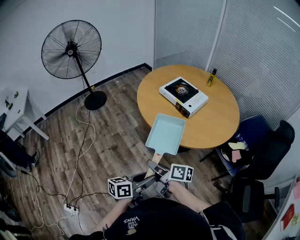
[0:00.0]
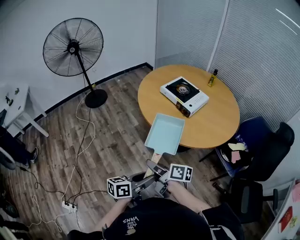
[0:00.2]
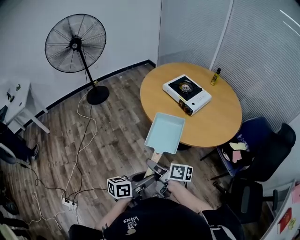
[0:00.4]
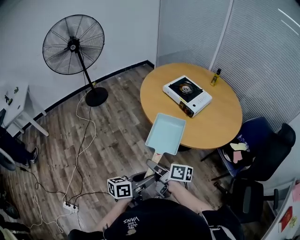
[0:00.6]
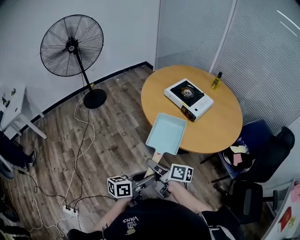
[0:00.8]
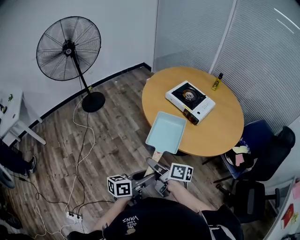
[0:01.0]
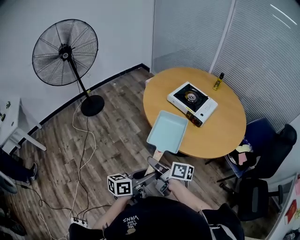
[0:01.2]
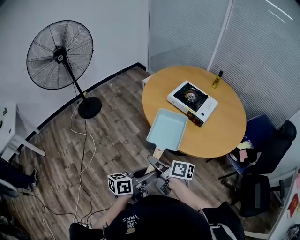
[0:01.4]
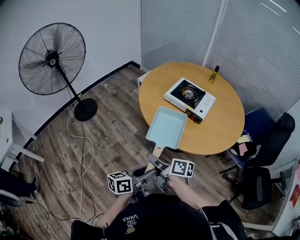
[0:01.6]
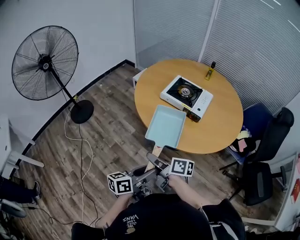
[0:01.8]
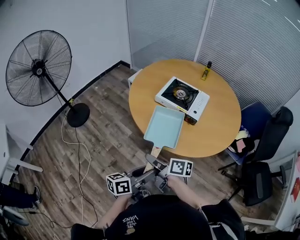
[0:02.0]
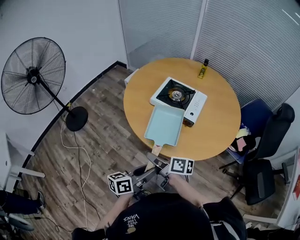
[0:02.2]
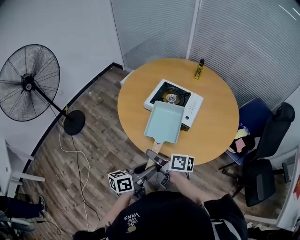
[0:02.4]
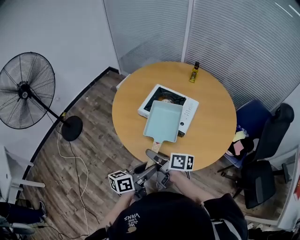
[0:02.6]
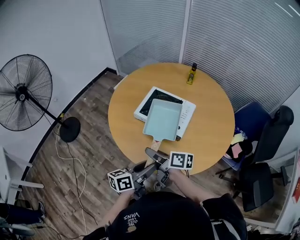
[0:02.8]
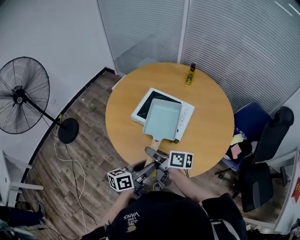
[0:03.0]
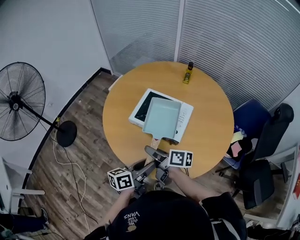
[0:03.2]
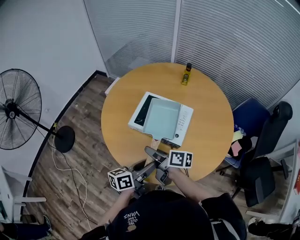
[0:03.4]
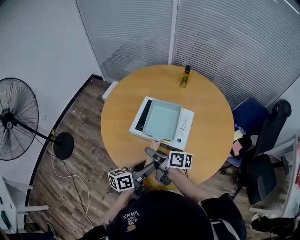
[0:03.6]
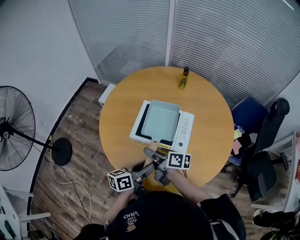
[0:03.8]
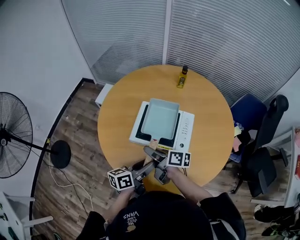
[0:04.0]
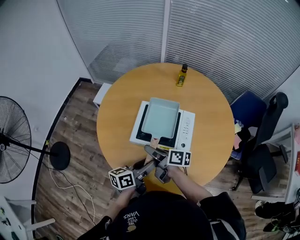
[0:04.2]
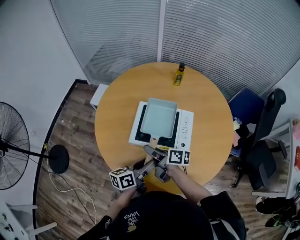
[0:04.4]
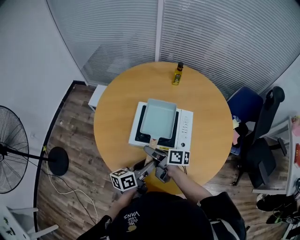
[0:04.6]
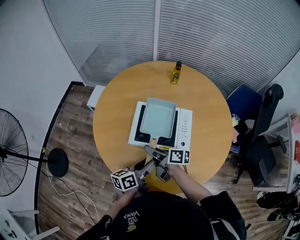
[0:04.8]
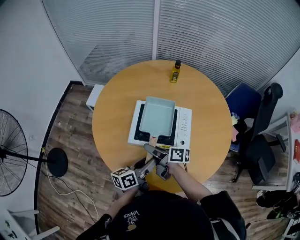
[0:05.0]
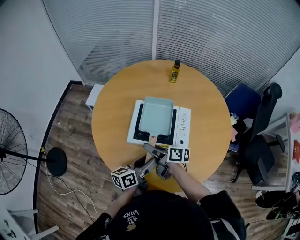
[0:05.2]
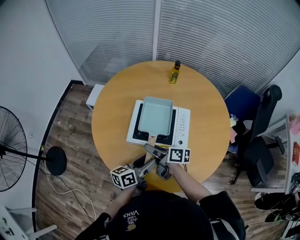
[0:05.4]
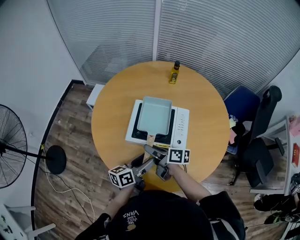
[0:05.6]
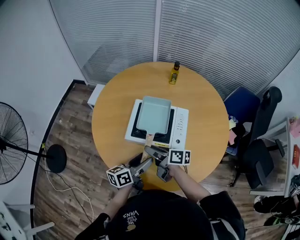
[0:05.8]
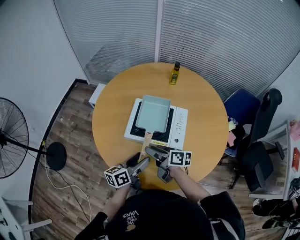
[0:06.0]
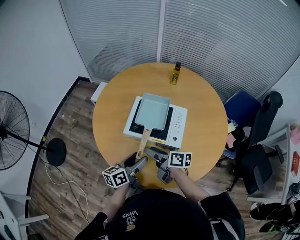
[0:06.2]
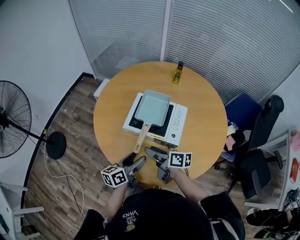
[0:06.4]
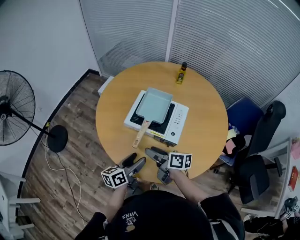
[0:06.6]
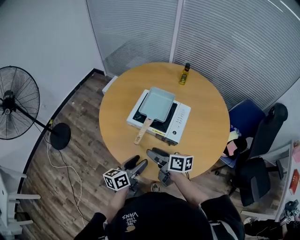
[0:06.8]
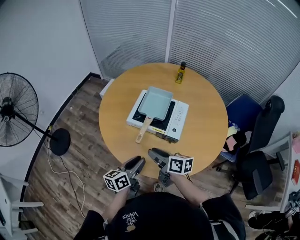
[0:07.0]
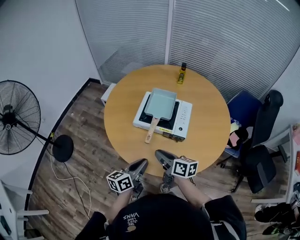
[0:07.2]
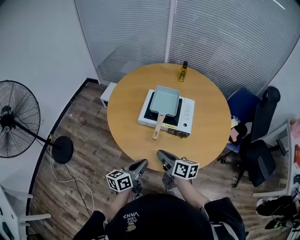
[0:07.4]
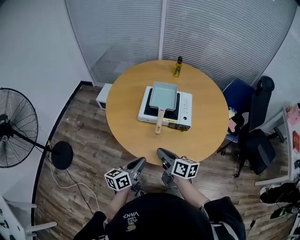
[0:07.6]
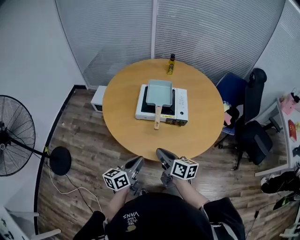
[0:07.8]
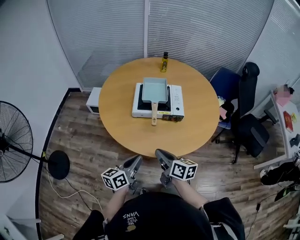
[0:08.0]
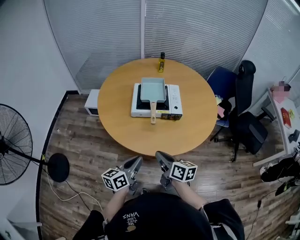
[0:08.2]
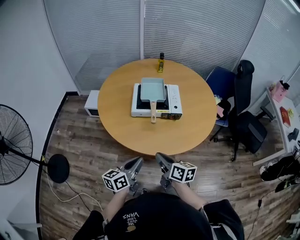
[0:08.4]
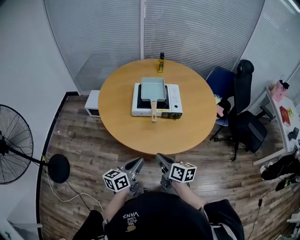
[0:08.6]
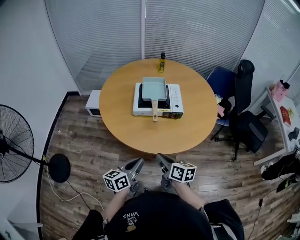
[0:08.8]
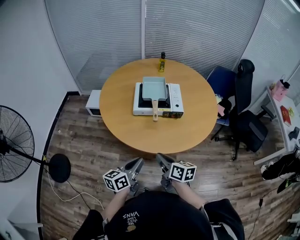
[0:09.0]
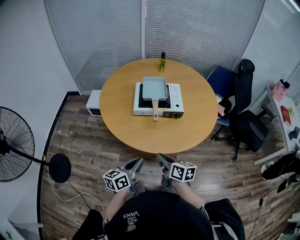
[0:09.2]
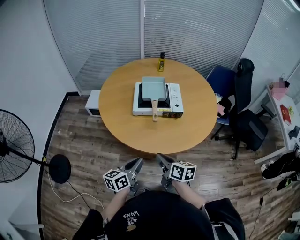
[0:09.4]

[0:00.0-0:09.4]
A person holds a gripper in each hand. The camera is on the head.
0:00.0 to 0:01.6: The grippers both shift forward and to the left by approximately 20 cm.
0:01.6 to 0:03.2: Both grippers move forward and to the right, some 30 cm.
0:03.2 to 0:04.8: The right gripper is displaced forward and downward by about 15 cm; the left gripper is displaced forward, to the left and downward by some 15 cm.
0:04.8 to 0:06.2: The left gripper opens up, while the right gripper moves backward, some 5 cm.
0:06.2 to 0:07.8: Both grippers move backward and to the left, approximately 15 cm. The left gripper closes its fingers. The right gripper changes its angle by approximately 30 degrees, and closes up.
0:07.8 to 0:09.4: The right gripper moves backward, approximately 5 cm.

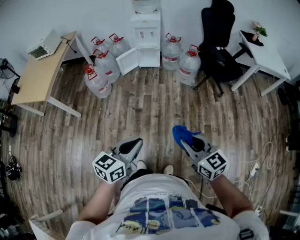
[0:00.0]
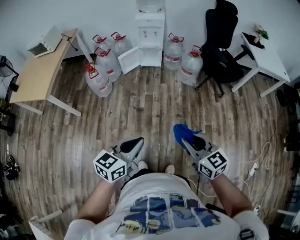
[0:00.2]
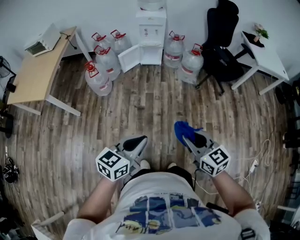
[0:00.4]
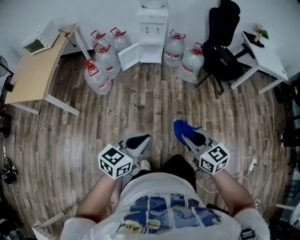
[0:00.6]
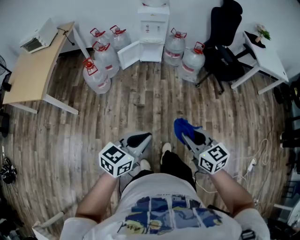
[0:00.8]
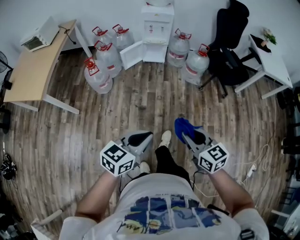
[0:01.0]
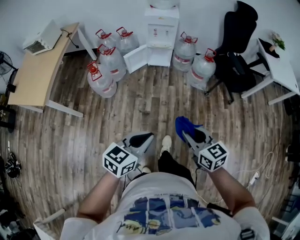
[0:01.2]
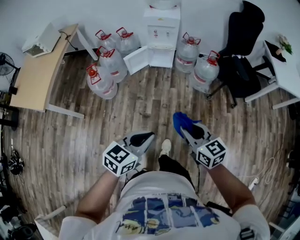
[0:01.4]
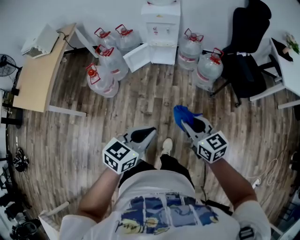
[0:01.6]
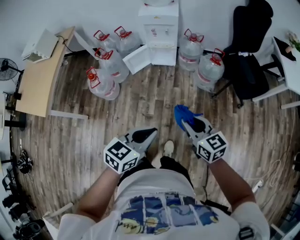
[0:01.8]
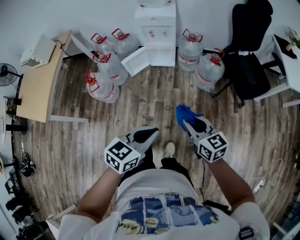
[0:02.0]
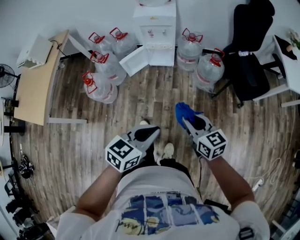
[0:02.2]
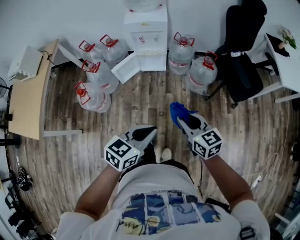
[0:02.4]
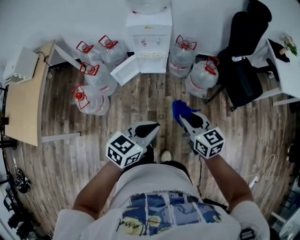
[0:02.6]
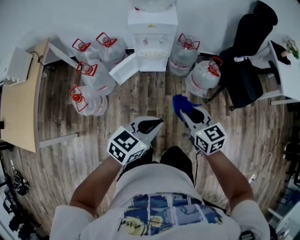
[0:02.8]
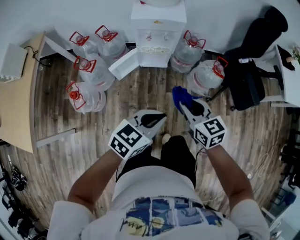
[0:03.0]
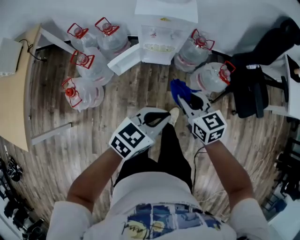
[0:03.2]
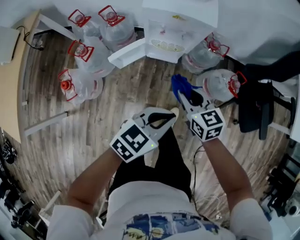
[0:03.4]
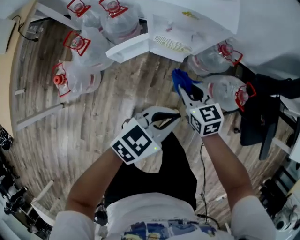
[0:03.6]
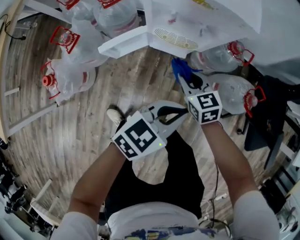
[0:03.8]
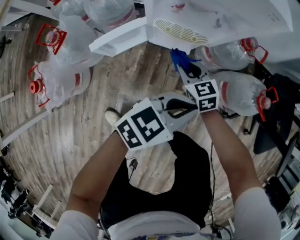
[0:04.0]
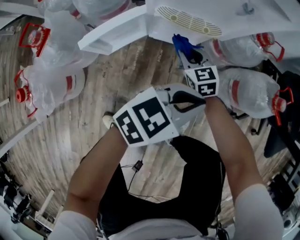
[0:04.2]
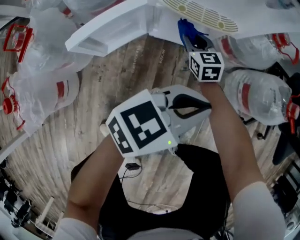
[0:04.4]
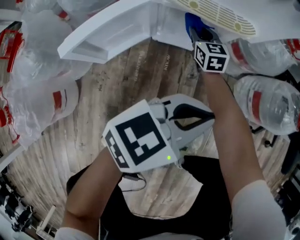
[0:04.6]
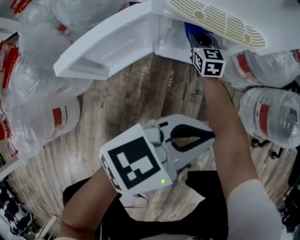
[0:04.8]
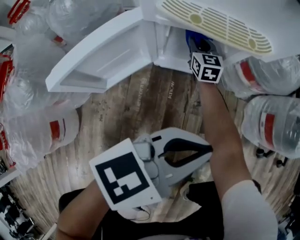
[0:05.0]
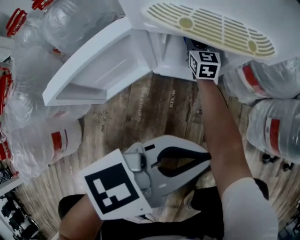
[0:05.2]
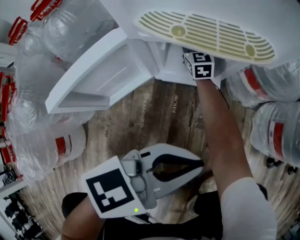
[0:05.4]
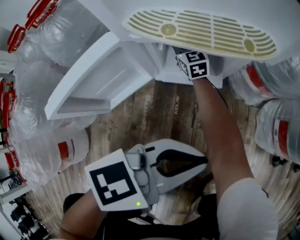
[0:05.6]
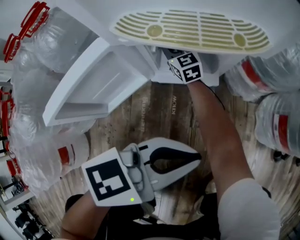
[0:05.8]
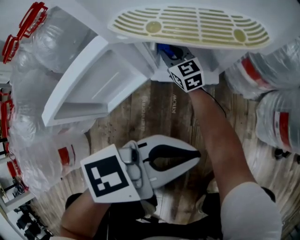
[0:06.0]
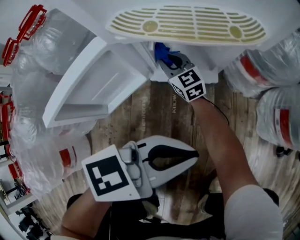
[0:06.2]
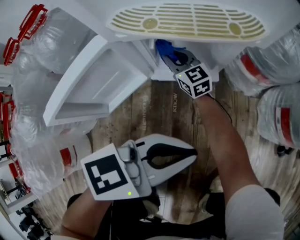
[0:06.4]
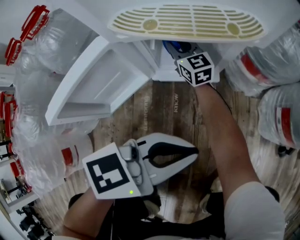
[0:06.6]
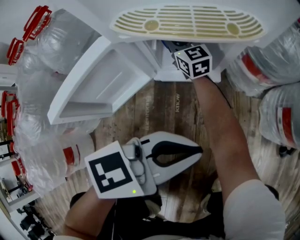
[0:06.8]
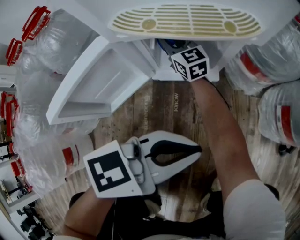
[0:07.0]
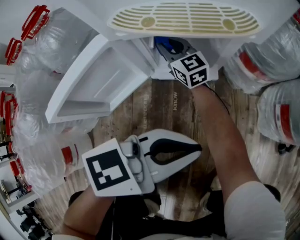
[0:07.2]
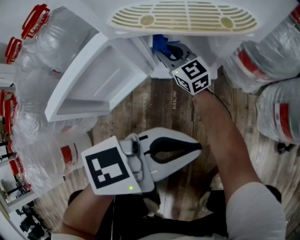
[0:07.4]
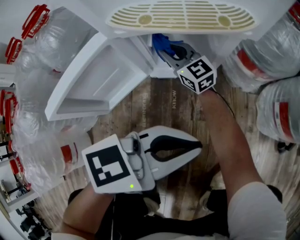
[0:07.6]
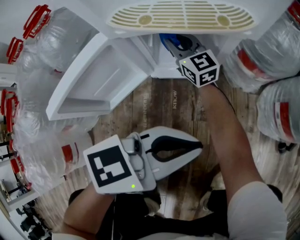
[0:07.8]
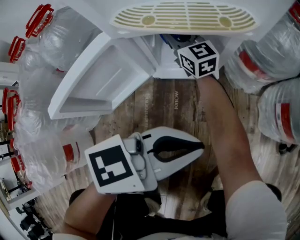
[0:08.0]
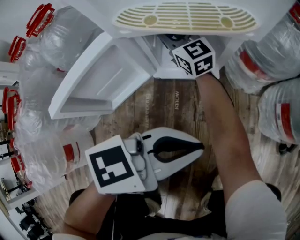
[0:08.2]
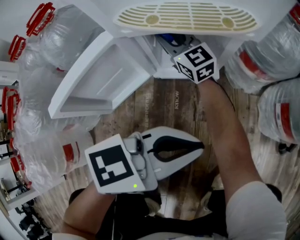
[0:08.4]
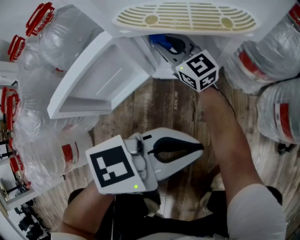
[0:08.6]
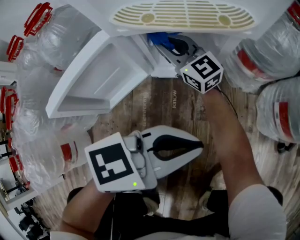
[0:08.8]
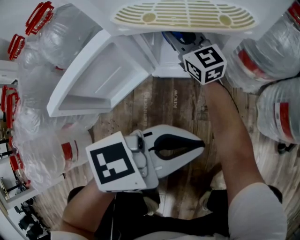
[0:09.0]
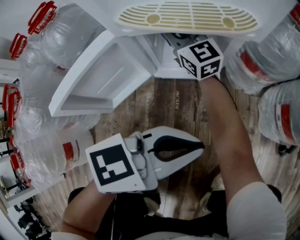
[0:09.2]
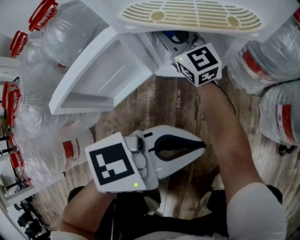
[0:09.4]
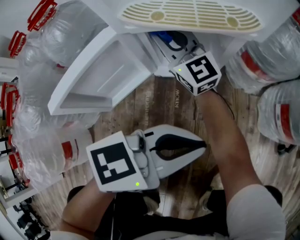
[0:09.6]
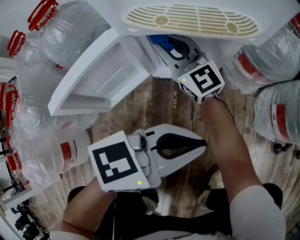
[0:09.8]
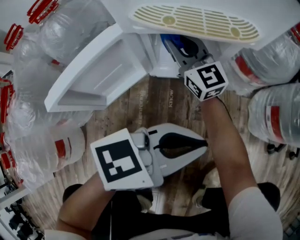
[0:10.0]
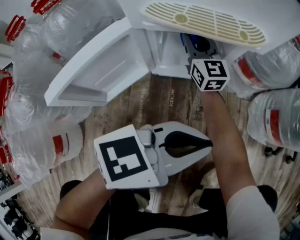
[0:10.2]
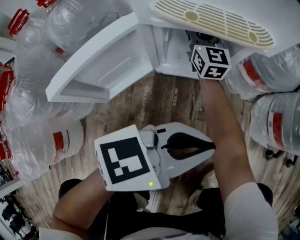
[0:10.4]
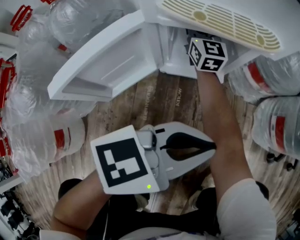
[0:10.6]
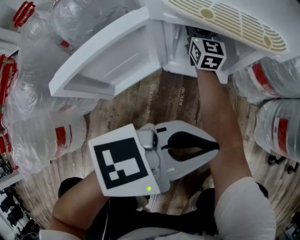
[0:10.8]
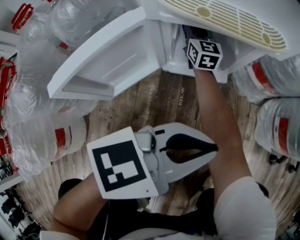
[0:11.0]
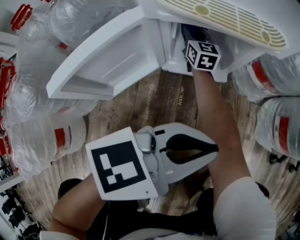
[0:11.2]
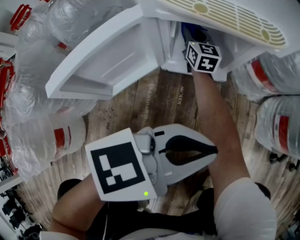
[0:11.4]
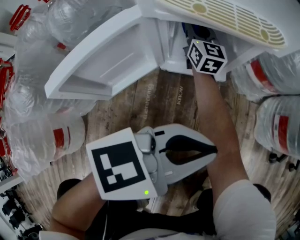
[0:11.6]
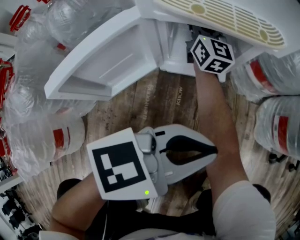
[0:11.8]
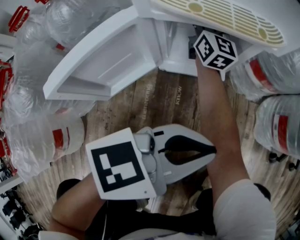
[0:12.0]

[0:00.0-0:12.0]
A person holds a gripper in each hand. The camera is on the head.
0:00.0 to 0:01.6: The two grippers go some 35 cm forward.
0:01.6 to 0:03.0: The grippers both shift forward by some 35 cm.
0:03.0 to 0:04.4: The two grippers go about 60 cm downward and forward.
0:04.4 to 0:06.0: The right gripper moves downward, to the left and forward, roughly 20 cm; the left gripper moves downward, approximately 15 cm.
0:06.0 to 0:07.6: The right gripper goes forward and backward, approximately 10 cm each way, reversing 2 times.
0:07.6 to 0:09.0: The right gripper shifts some 5 cm upward.
0:10.4 to 0:12.0: The right gripper moves approximately 10 cm downward and comes back.

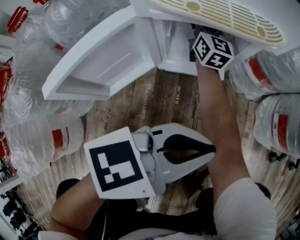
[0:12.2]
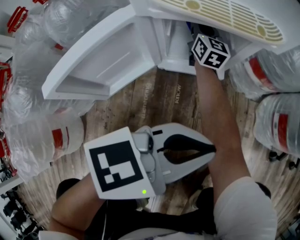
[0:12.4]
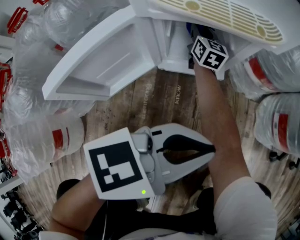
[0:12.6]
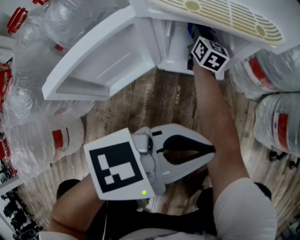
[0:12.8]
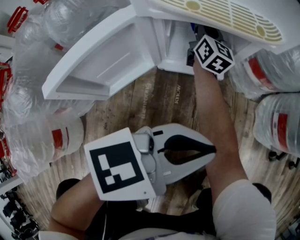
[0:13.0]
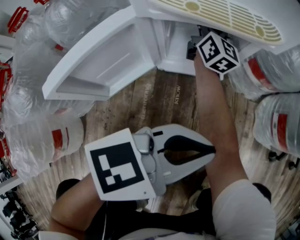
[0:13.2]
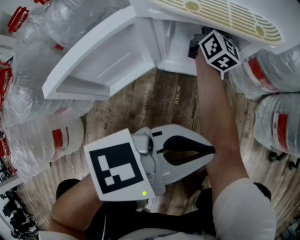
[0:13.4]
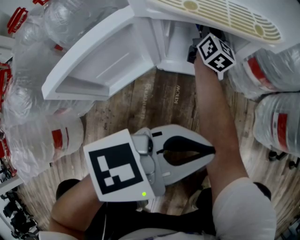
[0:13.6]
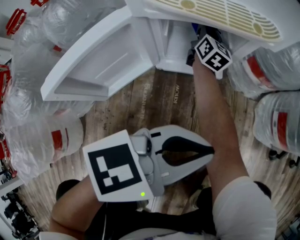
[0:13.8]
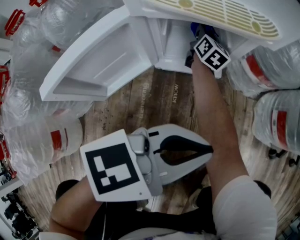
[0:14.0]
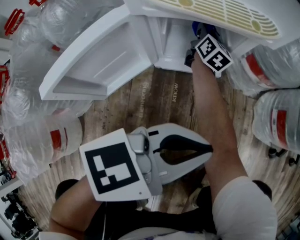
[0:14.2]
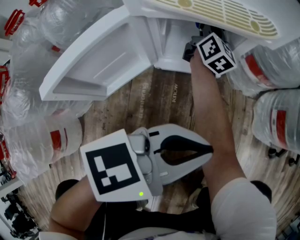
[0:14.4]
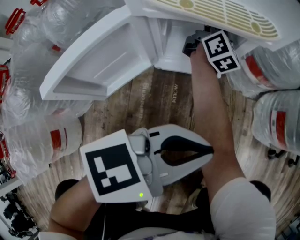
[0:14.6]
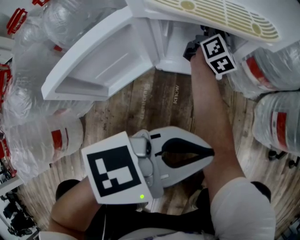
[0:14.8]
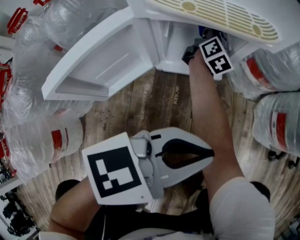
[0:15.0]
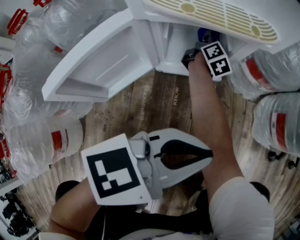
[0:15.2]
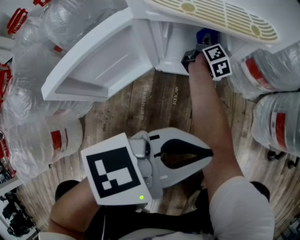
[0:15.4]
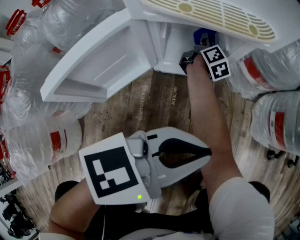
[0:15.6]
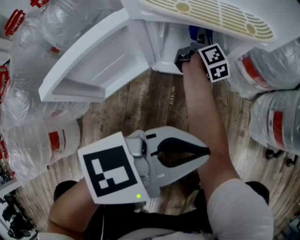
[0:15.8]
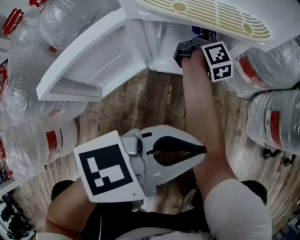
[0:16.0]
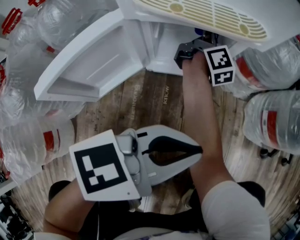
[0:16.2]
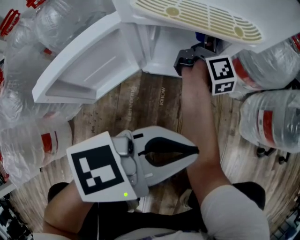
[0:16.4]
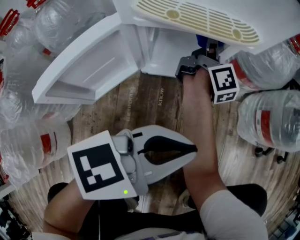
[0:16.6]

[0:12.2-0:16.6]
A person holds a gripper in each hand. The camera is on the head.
0:12.2 to 0:13.6: The right gripper swings up and down, some 10 cm each way, with 2 reversals.
0:13.6 to 0:15.2: The right gripper goes up and down, some 15 cm each way, reversing 2 times, and swivels roughly 30 degrees.
0:15.2 to 0:16.6: The right gripper goes roughly 15 cm upward and to the right, and swivels approximately 20 degrees.
